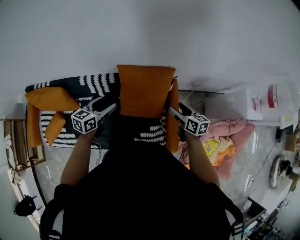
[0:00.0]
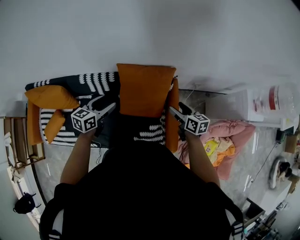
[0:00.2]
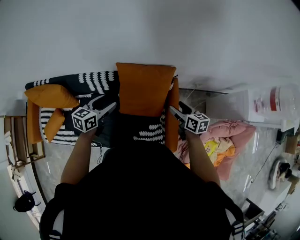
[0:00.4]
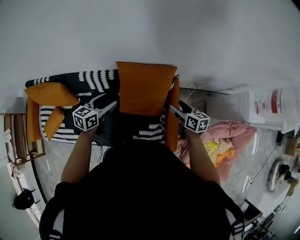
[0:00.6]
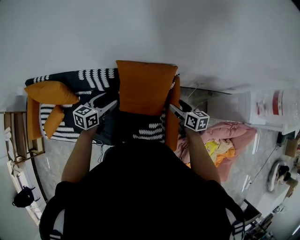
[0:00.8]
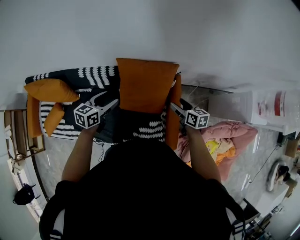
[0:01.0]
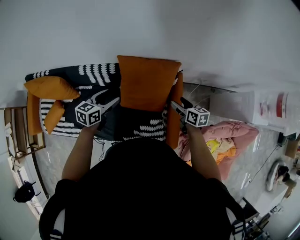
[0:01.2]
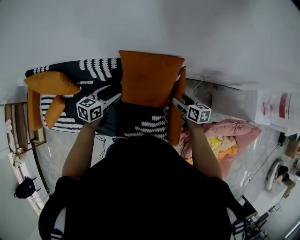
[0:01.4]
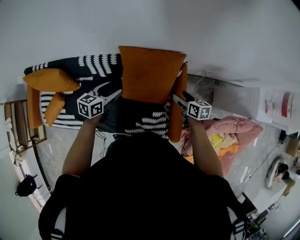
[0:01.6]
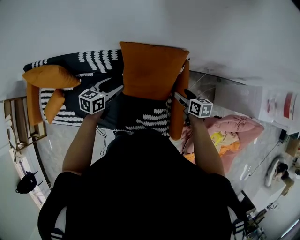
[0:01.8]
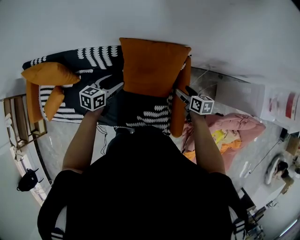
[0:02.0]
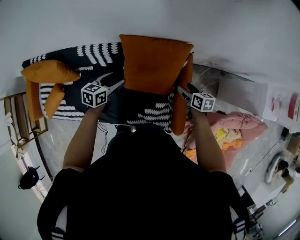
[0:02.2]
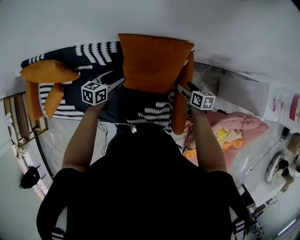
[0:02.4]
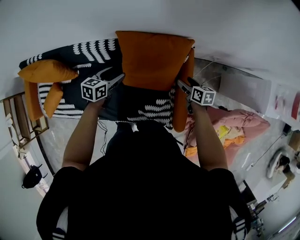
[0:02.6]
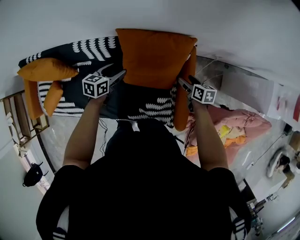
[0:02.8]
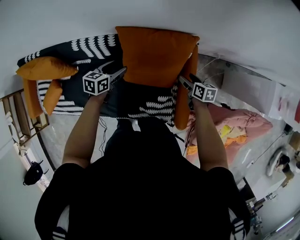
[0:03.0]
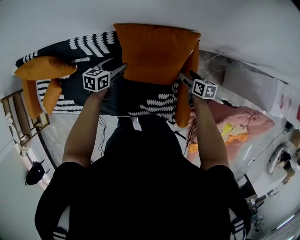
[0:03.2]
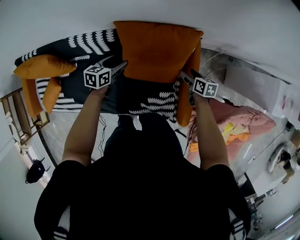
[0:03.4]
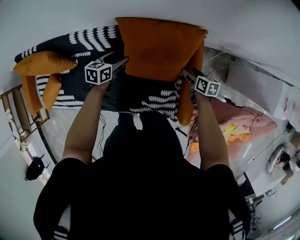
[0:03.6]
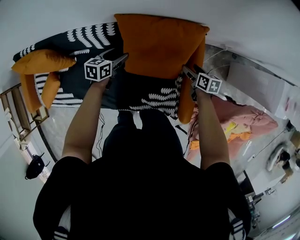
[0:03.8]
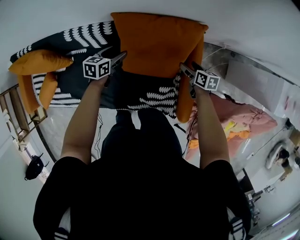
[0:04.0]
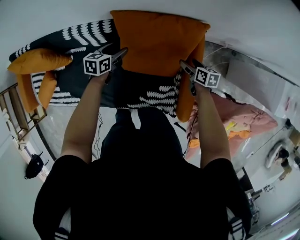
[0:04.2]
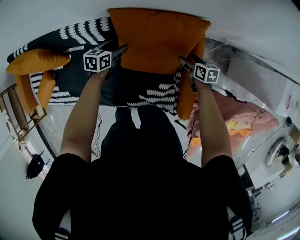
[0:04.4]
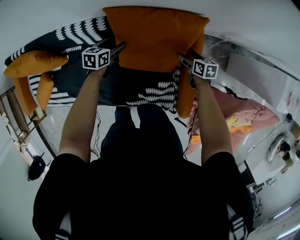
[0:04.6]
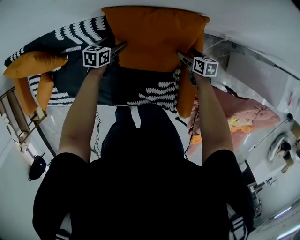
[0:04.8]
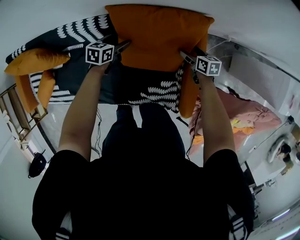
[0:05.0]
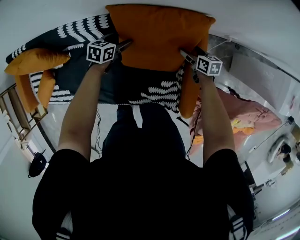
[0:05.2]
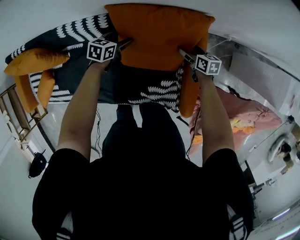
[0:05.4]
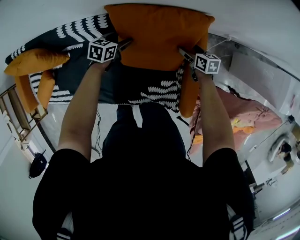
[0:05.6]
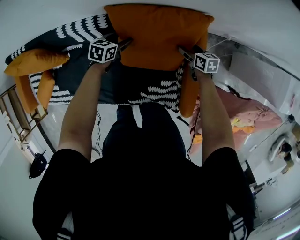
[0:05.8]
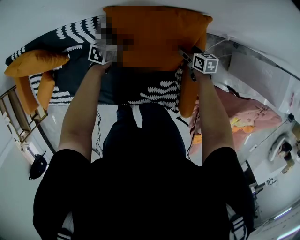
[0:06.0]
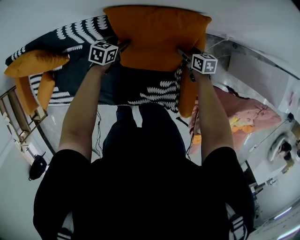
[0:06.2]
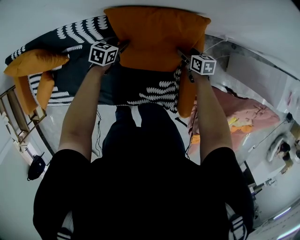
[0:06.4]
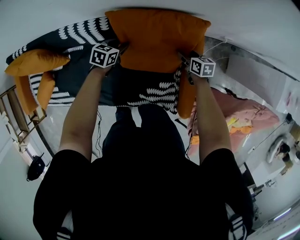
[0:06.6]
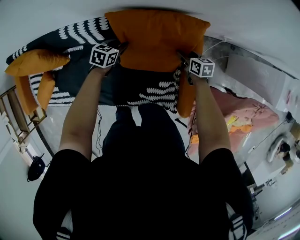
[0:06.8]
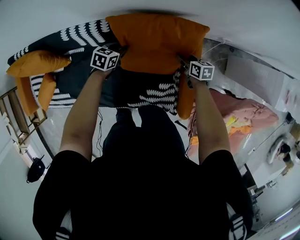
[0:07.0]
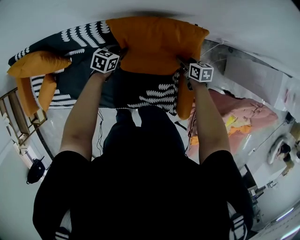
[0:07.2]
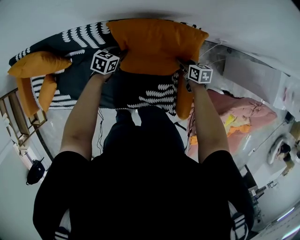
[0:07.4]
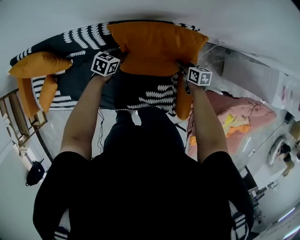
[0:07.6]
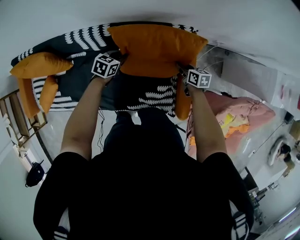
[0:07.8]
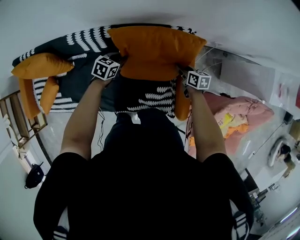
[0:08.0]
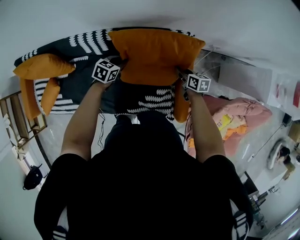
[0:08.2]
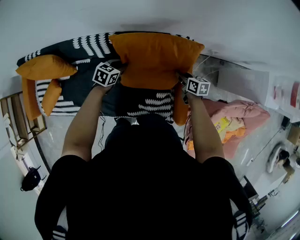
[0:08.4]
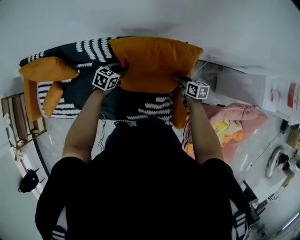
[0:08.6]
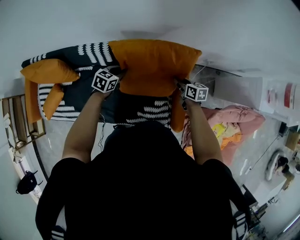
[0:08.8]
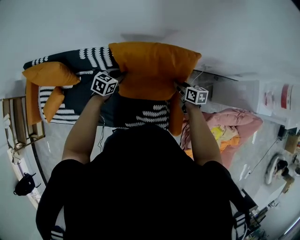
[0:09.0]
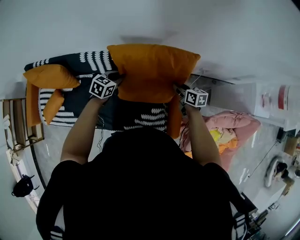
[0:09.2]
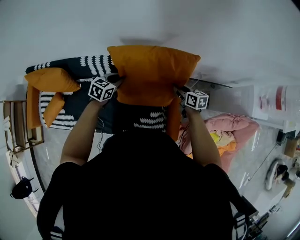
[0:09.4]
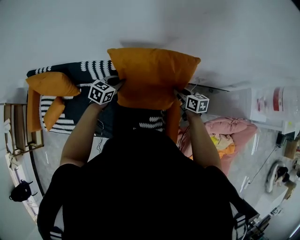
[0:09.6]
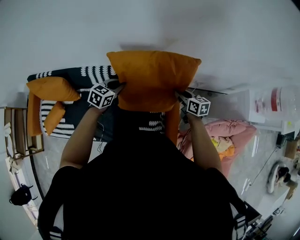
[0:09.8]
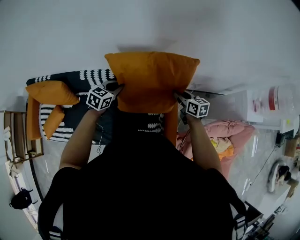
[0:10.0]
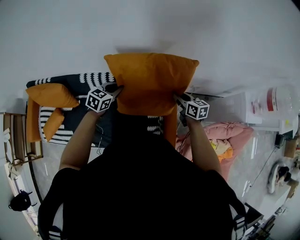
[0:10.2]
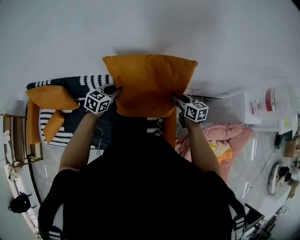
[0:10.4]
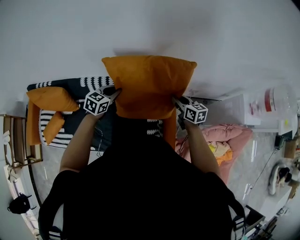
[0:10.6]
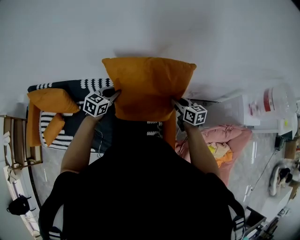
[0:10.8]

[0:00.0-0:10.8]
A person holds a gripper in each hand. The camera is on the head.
0:00.0 to 0:01.6: Both grippers travel together downward, some 10 cm.
0:01.6 to 0:03.0: The left gripper goes some 15 cm downward and forward. Meanwhile the right gripper is displaced downward by roughly 10 cm.
0:03.0 to 0:04.6: The grippers both shift downward by about 10 cm.
0:04.6 to 0:06.2: The grippers move only a little.
0:06.2 to 0:07.8: The left gripper goes some 10 cm upward and backward, and closes; the right gripper moves backward and upward, approximately 10 cm, and closes up.
0:07.8 to 0:09.2: The two grippers go some 15 cm upward.
0:09.2 to 0:10.8: The grippers both shift upward by roughly 15 cm.

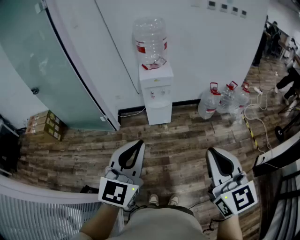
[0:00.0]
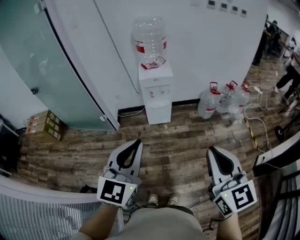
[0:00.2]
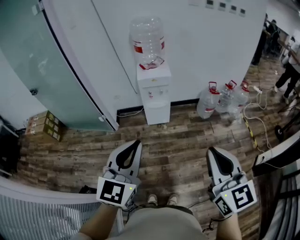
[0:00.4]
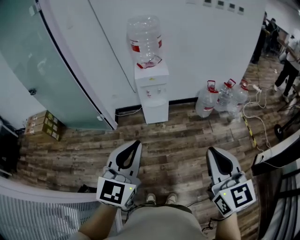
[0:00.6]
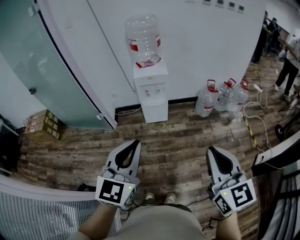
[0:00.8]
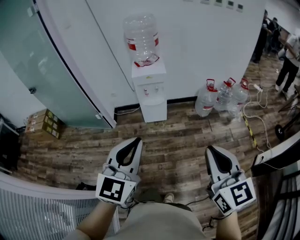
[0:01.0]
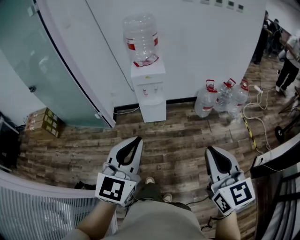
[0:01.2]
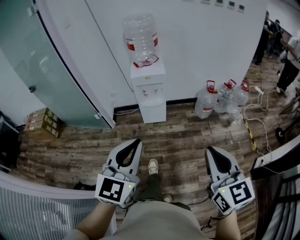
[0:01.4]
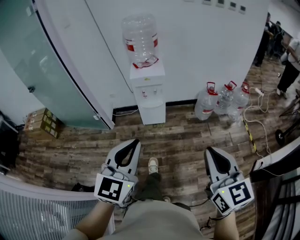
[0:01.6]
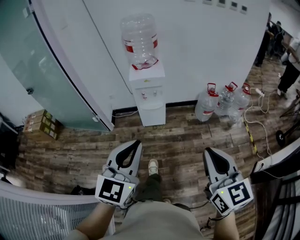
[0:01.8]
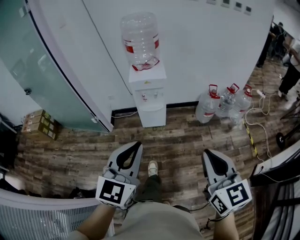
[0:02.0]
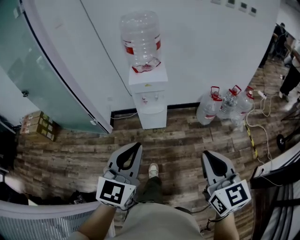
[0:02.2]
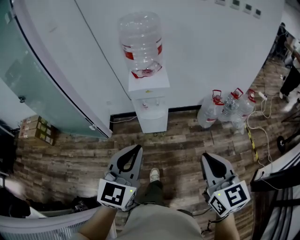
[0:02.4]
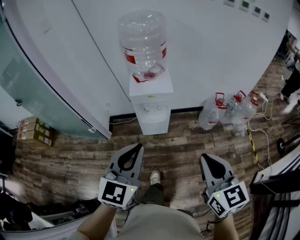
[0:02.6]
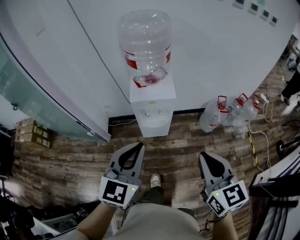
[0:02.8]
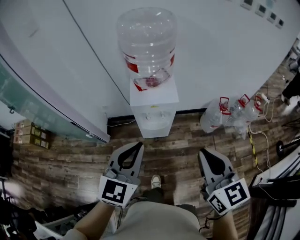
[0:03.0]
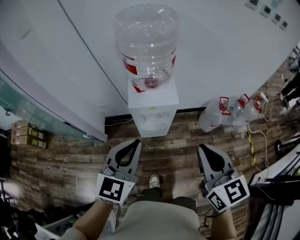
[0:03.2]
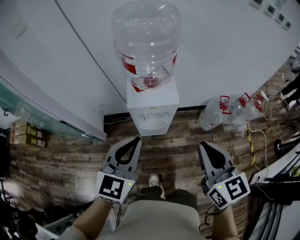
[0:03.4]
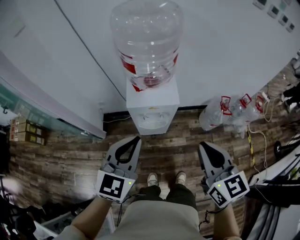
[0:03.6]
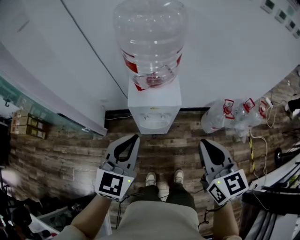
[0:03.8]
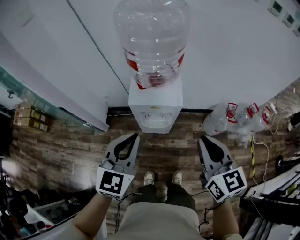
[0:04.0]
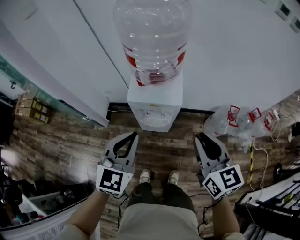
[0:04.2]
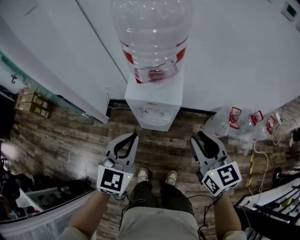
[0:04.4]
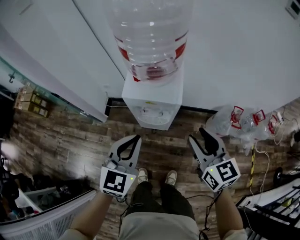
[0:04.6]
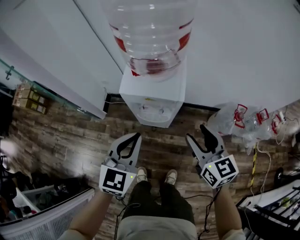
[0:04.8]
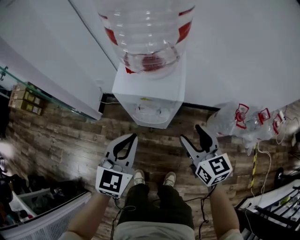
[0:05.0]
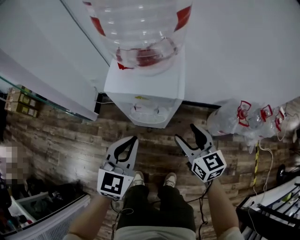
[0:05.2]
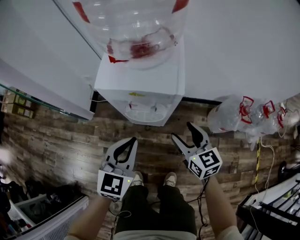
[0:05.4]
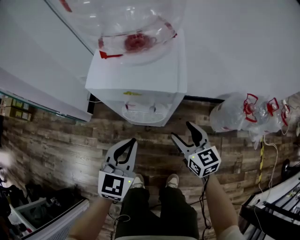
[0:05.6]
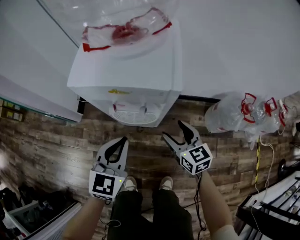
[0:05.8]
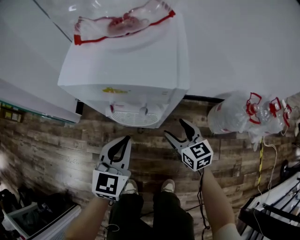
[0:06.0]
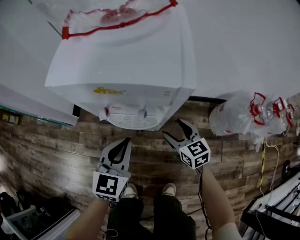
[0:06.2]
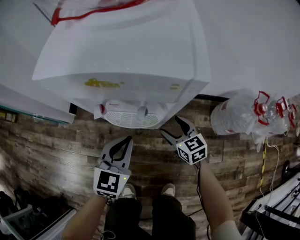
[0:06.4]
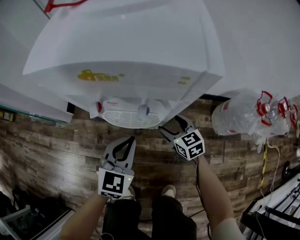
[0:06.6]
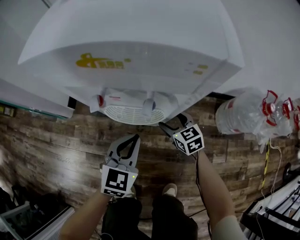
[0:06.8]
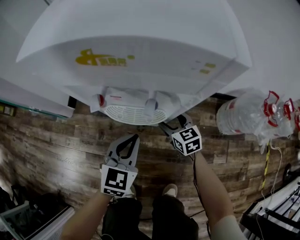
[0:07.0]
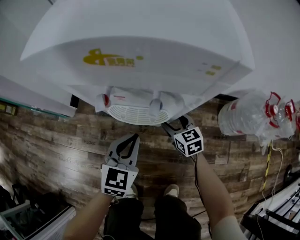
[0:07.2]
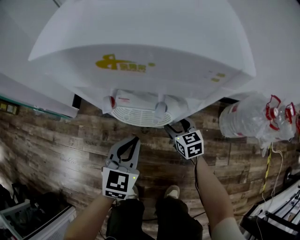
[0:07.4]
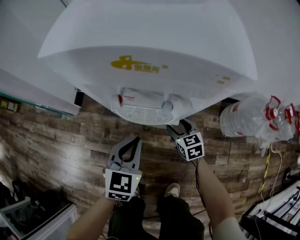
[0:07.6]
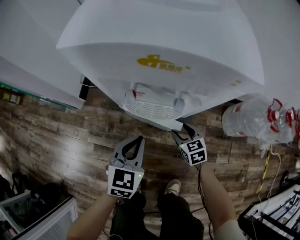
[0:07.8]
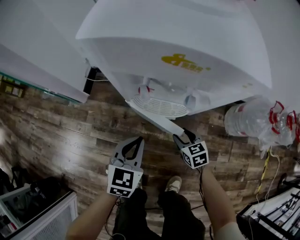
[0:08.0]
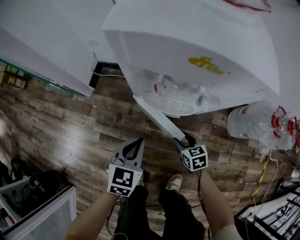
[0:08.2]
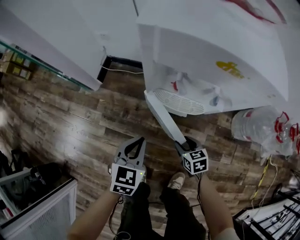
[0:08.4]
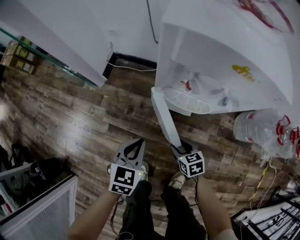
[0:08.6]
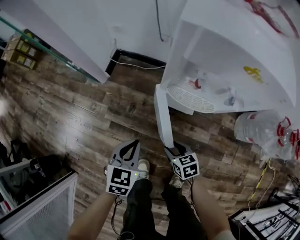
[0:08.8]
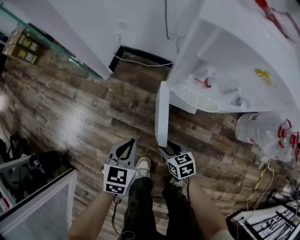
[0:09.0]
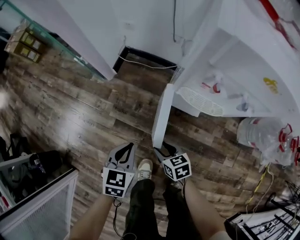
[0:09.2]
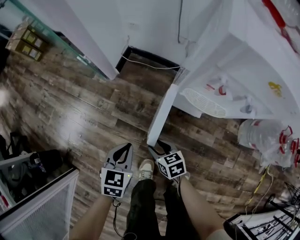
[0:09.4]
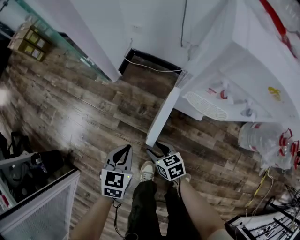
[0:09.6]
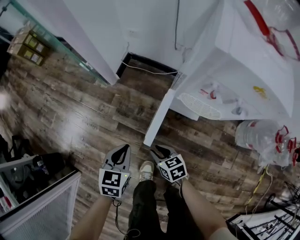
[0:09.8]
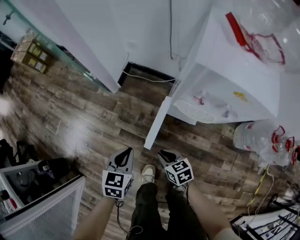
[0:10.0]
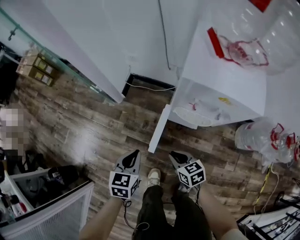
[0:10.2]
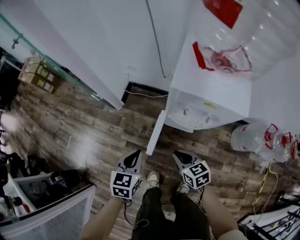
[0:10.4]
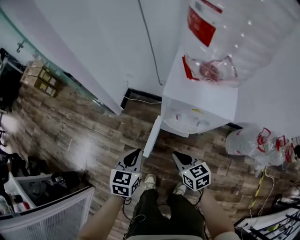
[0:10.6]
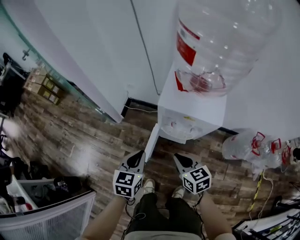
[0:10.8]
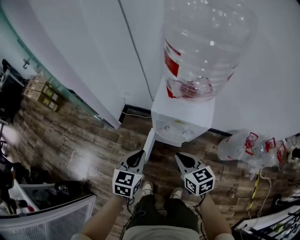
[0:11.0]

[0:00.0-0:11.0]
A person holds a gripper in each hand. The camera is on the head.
0:00.0 to 0:01.6: The right gripper goes roughly 10 cm to the right and downward. Meanwhile the left gripper goes approximately 10 cm to the right.
0:01.6 to 0:03.2: The pair of grippers is taken forward, some 40 cm.
0:03.2 to 0:04.8: The right gripper heads downward and forward, covering about 25 cm, and opens up; the left gripper heads downward, forward and to the right, covering roughly 20 cm.
0:04.8 to 0:06.2: Both grippers travel together downward, some 40 cm.
0:06.2 to 0:07.8: The left gripper shifts some 10 cm downward; the right gripper shifts some 15 cm downward.
0:07.8 to 0:09.4: The left gripper ends up approximately 25 cm from where it was, and rotates roughly 20 degrees. The right gripper changes place by roughly 35 cm, and changes its angle by some 30 degrees.
0:09.4 to 0:11.0: The two grippers go about 40 cm upward. The right gripper turns by approximately 30 degrees, and closes its fingers.

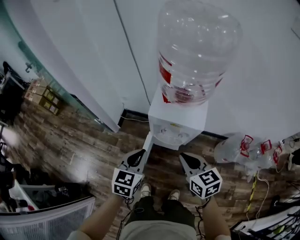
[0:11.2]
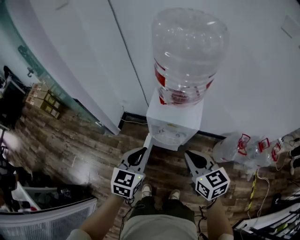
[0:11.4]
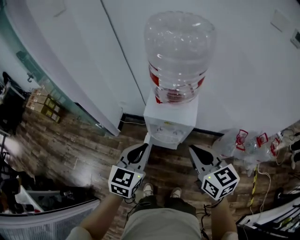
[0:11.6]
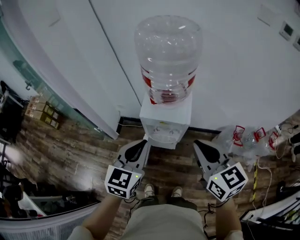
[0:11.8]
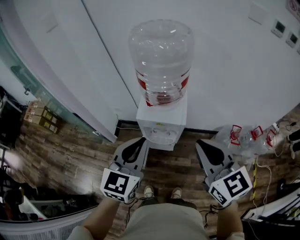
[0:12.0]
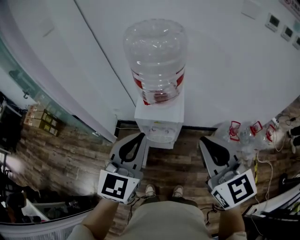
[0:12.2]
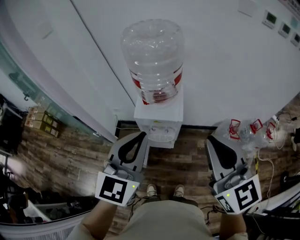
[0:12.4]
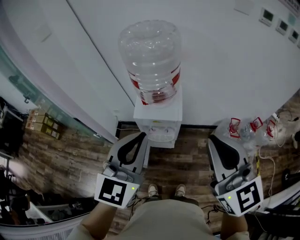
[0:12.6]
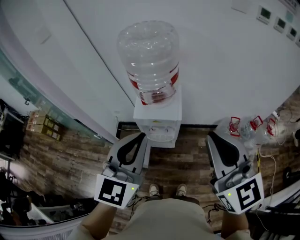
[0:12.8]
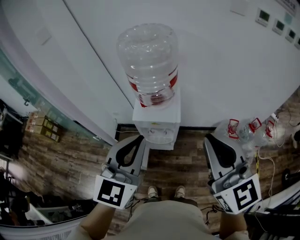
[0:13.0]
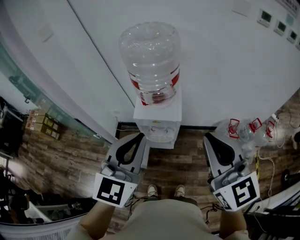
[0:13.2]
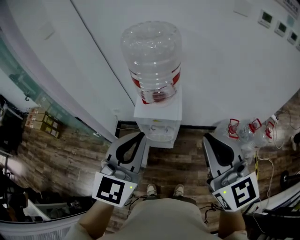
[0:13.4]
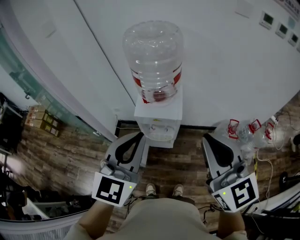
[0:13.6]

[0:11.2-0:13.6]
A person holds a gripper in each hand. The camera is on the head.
0:11.2 to 0:12.4: Both grippers move upward, roughly 30 cm. The right gripper rotates about 40 degrees; the left gripper swivels roughly 30 degrees.
0:12.4 to 0:13.6: The grippers make only small movements.
